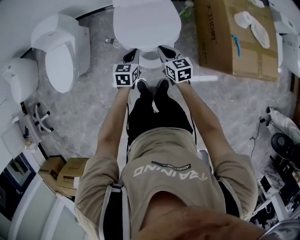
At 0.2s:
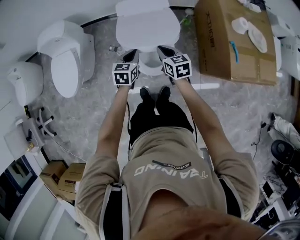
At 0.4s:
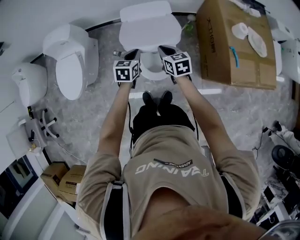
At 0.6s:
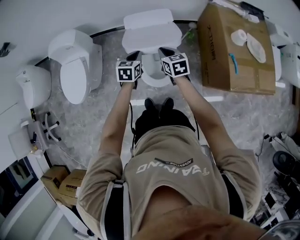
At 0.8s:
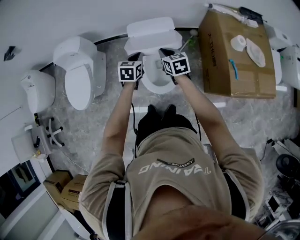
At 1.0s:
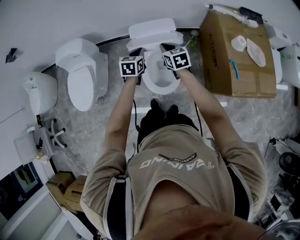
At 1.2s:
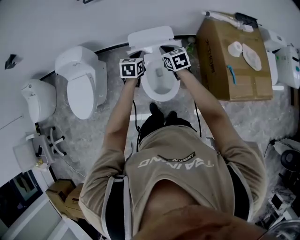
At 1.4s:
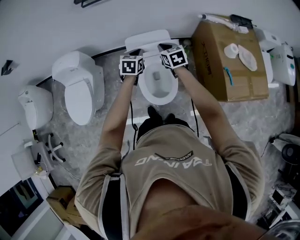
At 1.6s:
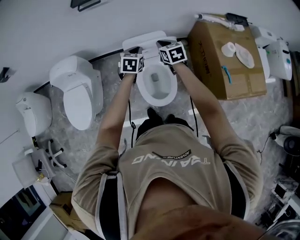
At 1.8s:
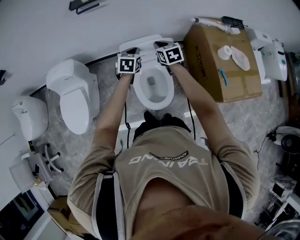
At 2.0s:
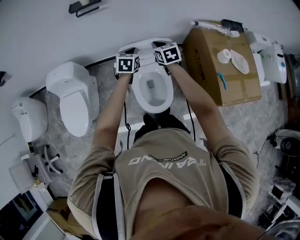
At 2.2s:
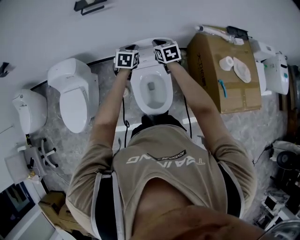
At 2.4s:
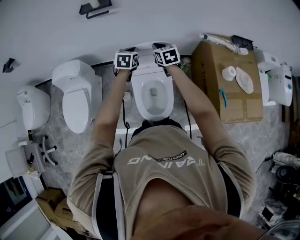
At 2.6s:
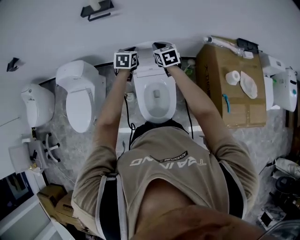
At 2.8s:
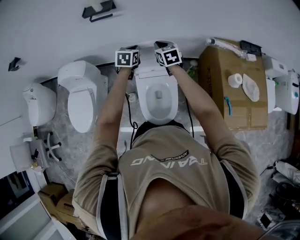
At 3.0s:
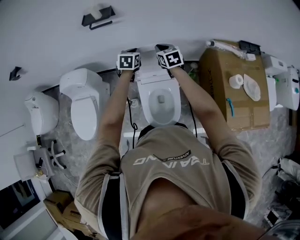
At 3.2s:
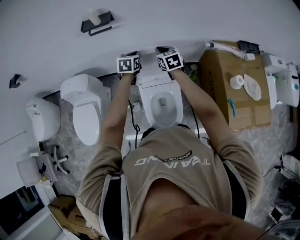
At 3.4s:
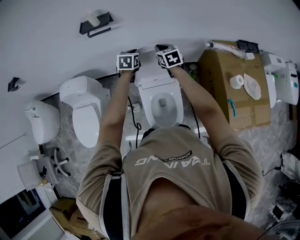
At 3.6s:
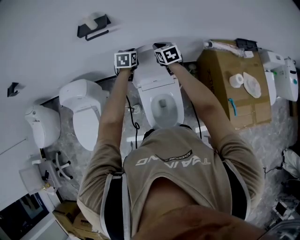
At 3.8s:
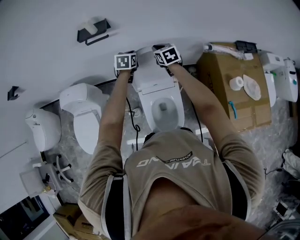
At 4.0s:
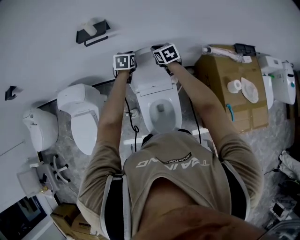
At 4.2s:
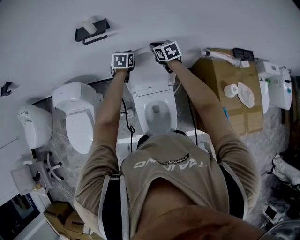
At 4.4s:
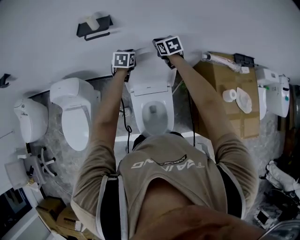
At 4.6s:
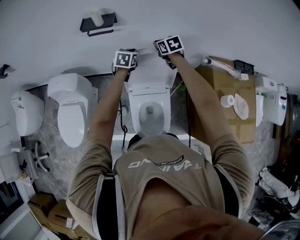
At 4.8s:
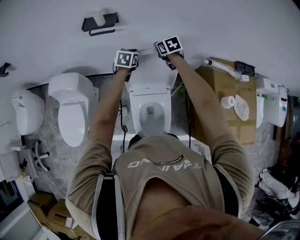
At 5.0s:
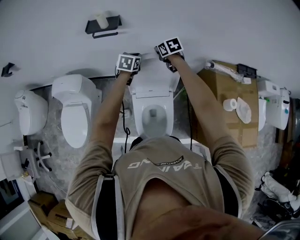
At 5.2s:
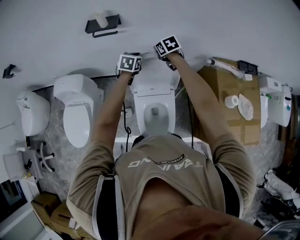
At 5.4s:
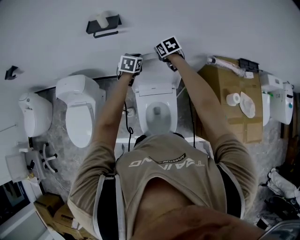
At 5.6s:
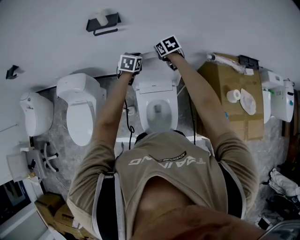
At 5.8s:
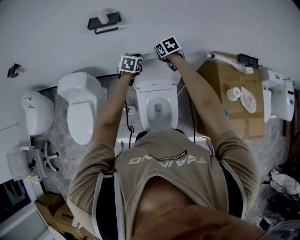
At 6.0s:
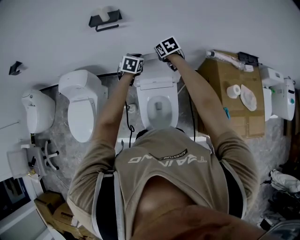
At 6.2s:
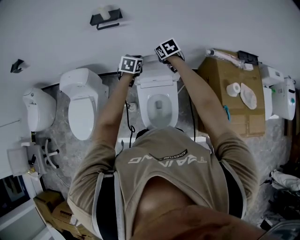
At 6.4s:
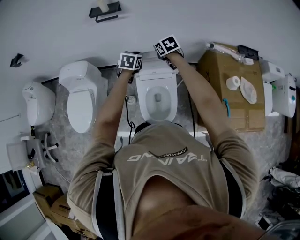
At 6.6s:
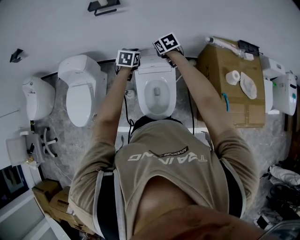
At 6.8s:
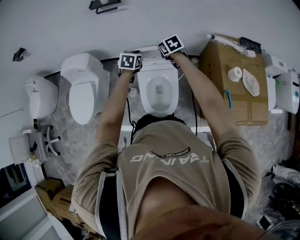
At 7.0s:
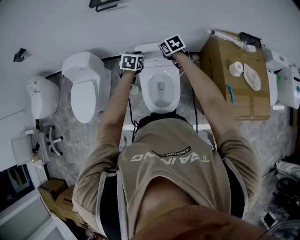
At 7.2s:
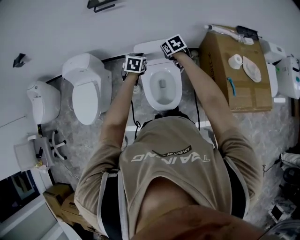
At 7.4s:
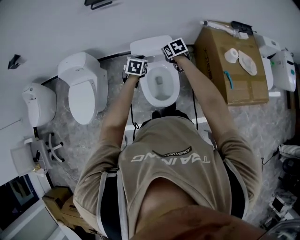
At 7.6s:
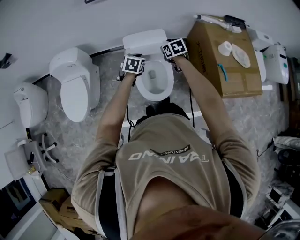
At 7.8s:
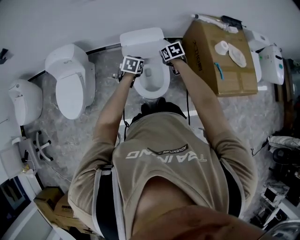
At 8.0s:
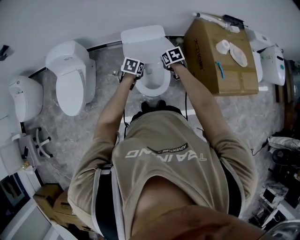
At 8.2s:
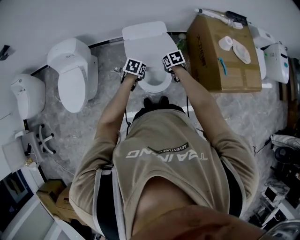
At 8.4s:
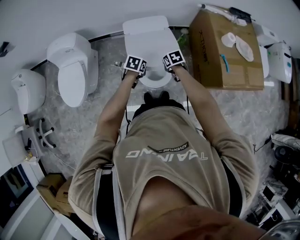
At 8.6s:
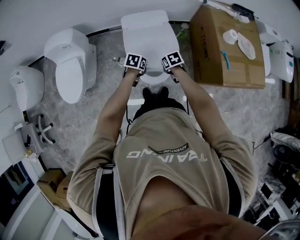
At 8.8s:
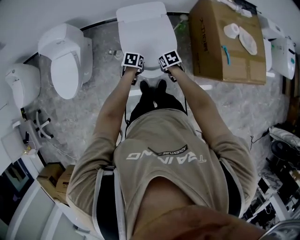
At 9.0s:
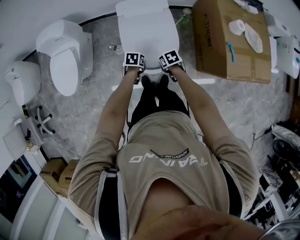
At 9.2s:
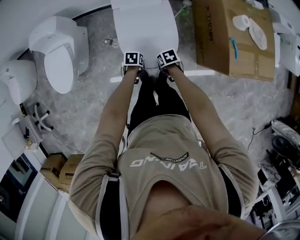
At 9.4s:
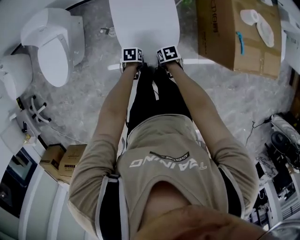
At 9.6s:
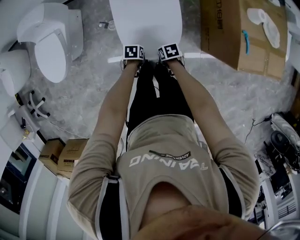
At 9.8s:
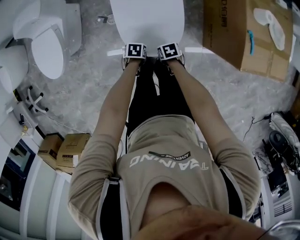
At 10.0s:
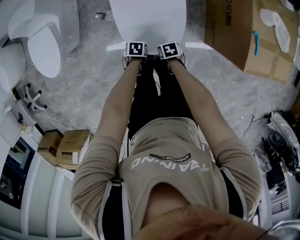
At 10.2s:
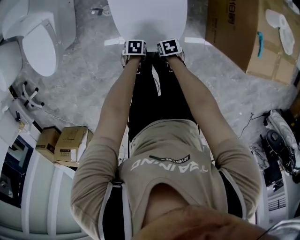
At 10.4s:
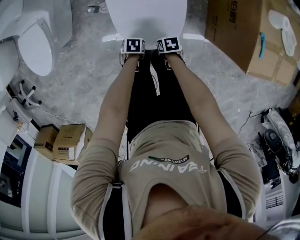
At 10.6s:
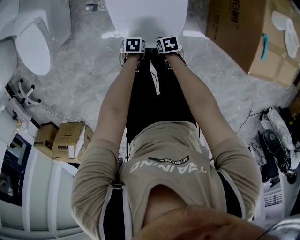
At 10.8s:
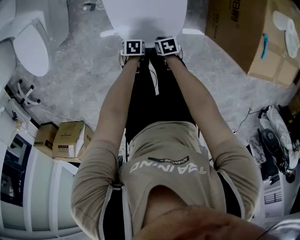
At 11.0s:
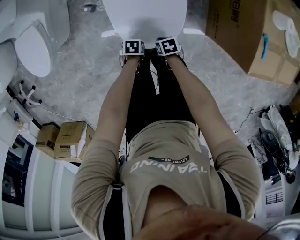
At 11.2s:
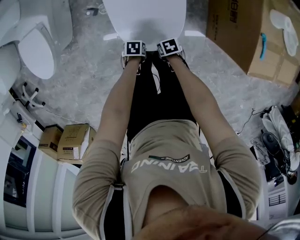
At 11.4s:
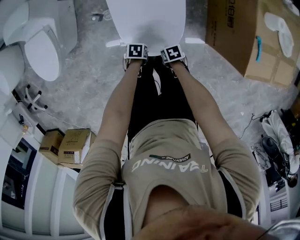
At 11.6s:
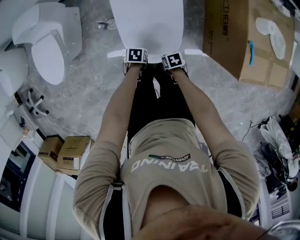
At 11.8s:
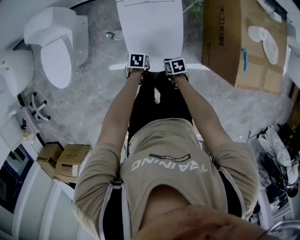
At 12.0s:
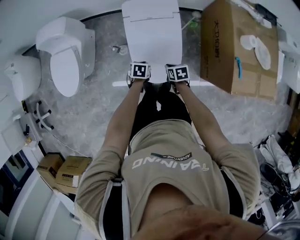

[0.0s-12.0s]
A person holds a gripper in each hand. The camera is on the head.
0.0s to 1.6s: Both grippers travel together forward and upward, roughly 30 cm.
1.6s to 3.0s: The grippers both shift forward by some 15 cm.
3.0s to 4.4s: The two grippers go some 10 cm forward.
4.4s to 6.0s: Both grippers move backward, some 10 cm.
6.0s to 7.6s: The two grippers go roughly 25 cm backward.
7.6s to 9.0s: Both grippers move downward, approximately 20 cm. The left gripper rotates approximately 40 degrees. Meanwhile the right gripper turns by approximately 30 degrees.
9.0s to 10.4s: Both grippers travel together downward, roughly 20 cm.
10.4s to 12.0s: The two grippers go some 20 cm upward. The left gripper turns by about 20 degrees.

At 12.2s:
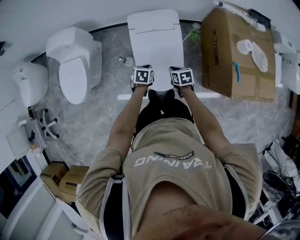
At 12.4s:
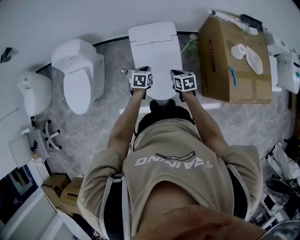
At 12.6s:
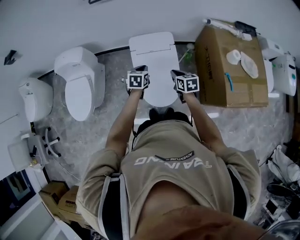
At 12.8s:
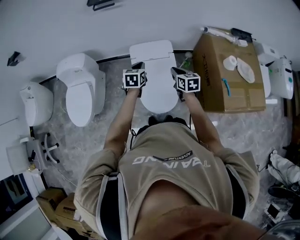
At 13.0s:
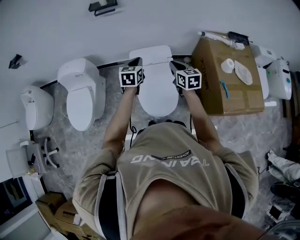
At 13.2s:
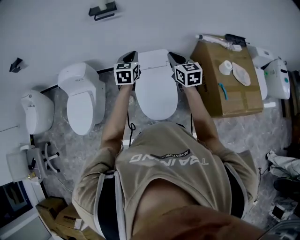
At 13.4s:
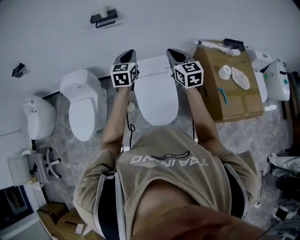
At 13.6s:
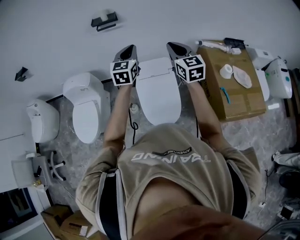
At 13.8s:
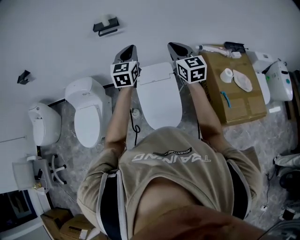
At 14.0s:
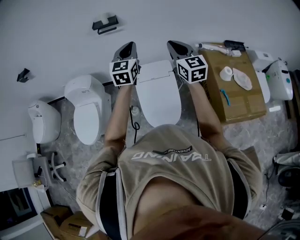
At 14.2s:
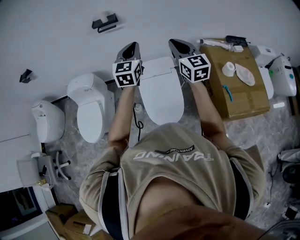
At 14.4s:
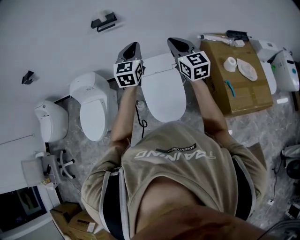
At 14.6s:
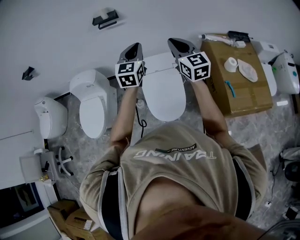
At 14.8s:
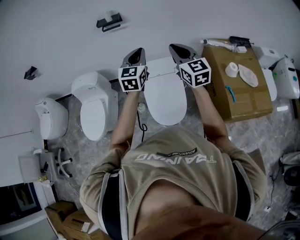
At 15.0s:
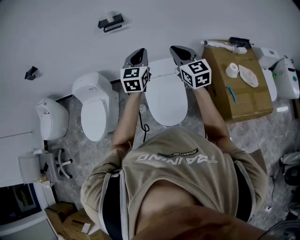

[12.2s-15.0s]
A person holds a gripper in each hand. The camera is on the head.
12.2s to 13.6s: Both grippers move upward, approximately 40 cm. The left gripper tilts its fingers some 50 degrees upward; the right gripper angles its fingers upward, by some 50 degrees.
13.6s to 15.0s: Both grippers move backward, some 5 cm.

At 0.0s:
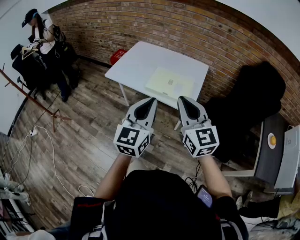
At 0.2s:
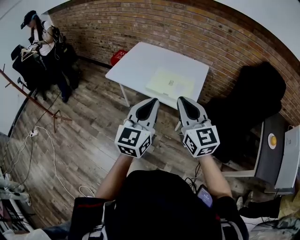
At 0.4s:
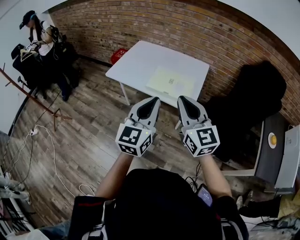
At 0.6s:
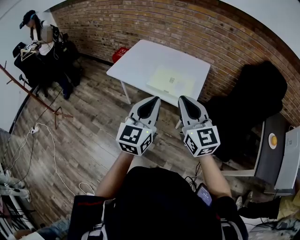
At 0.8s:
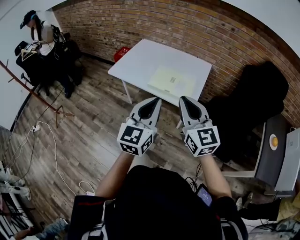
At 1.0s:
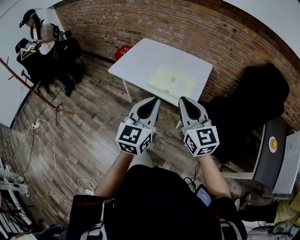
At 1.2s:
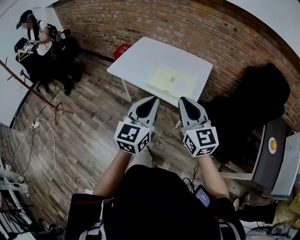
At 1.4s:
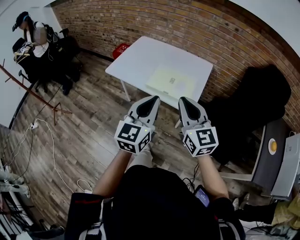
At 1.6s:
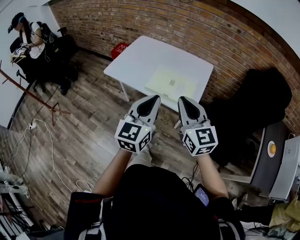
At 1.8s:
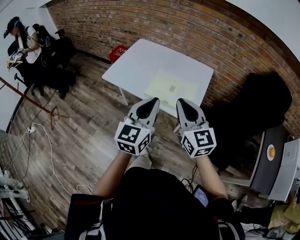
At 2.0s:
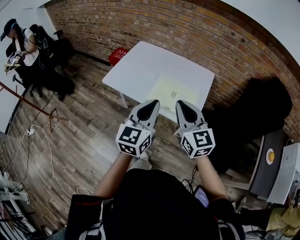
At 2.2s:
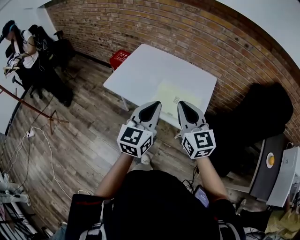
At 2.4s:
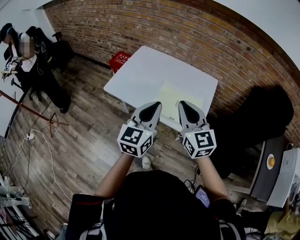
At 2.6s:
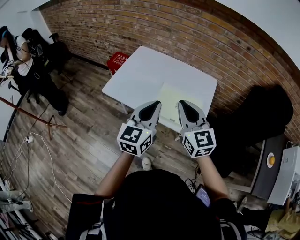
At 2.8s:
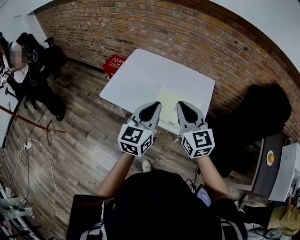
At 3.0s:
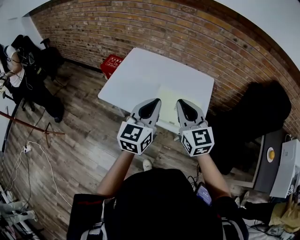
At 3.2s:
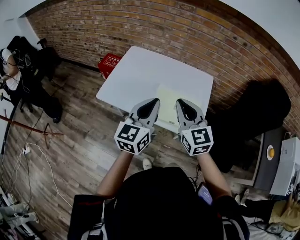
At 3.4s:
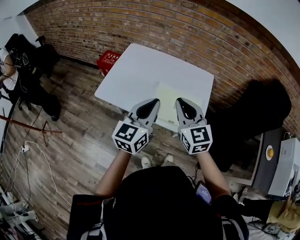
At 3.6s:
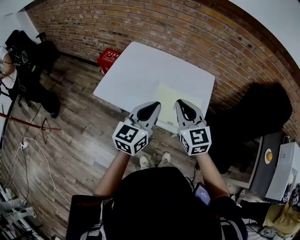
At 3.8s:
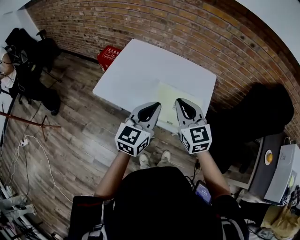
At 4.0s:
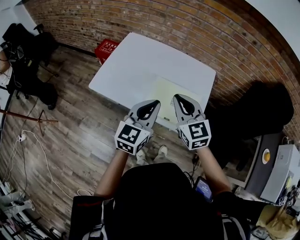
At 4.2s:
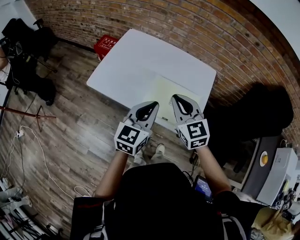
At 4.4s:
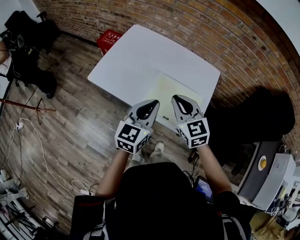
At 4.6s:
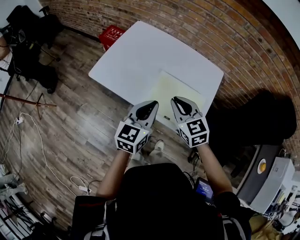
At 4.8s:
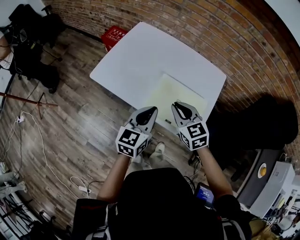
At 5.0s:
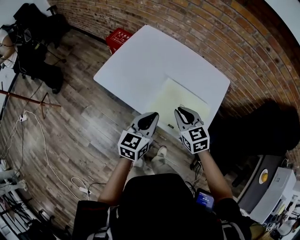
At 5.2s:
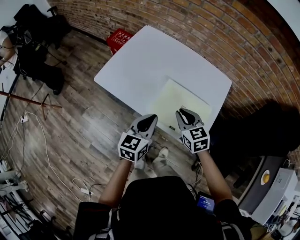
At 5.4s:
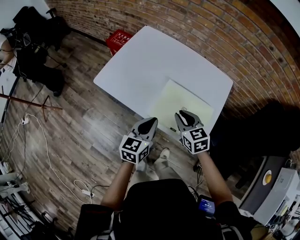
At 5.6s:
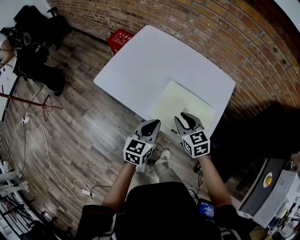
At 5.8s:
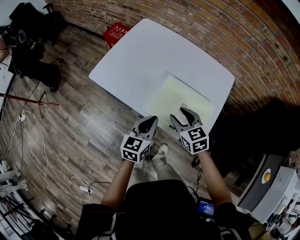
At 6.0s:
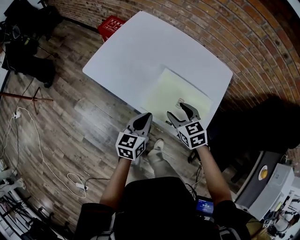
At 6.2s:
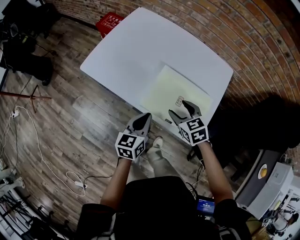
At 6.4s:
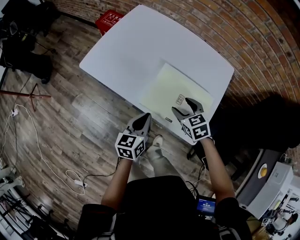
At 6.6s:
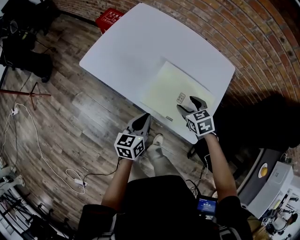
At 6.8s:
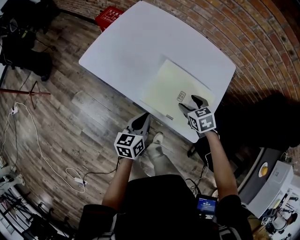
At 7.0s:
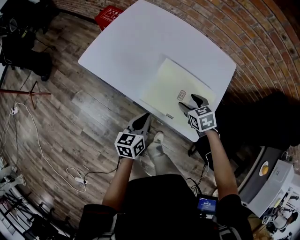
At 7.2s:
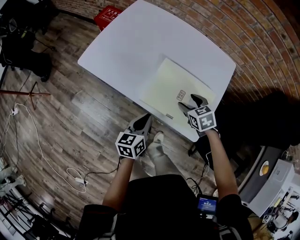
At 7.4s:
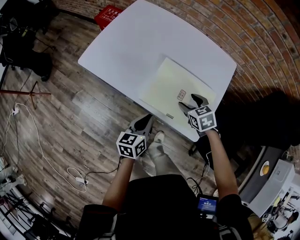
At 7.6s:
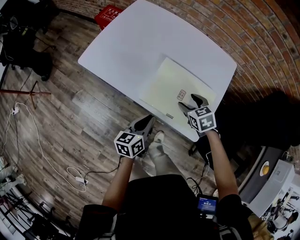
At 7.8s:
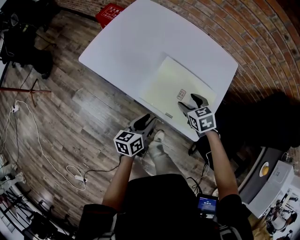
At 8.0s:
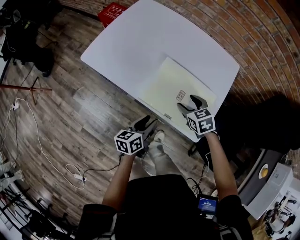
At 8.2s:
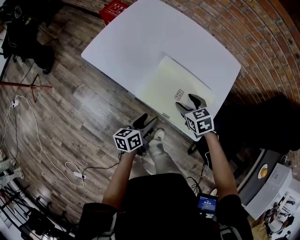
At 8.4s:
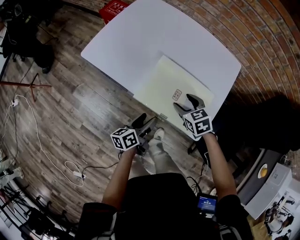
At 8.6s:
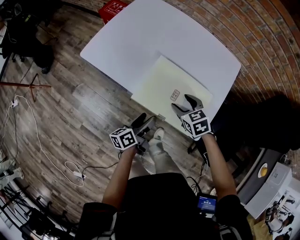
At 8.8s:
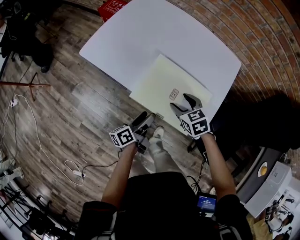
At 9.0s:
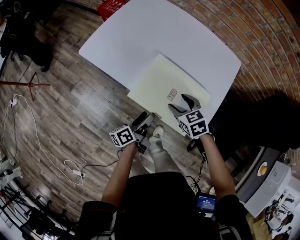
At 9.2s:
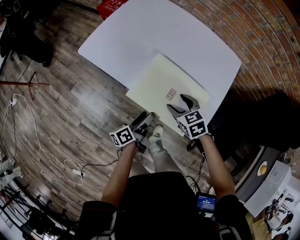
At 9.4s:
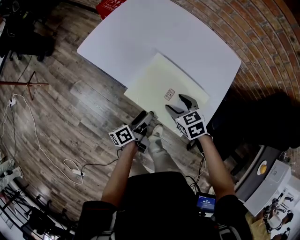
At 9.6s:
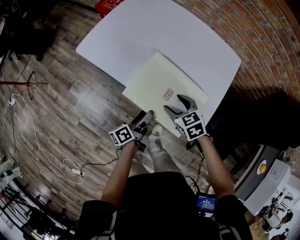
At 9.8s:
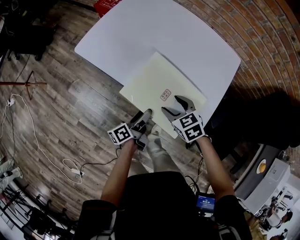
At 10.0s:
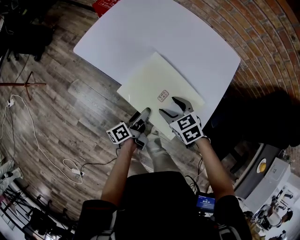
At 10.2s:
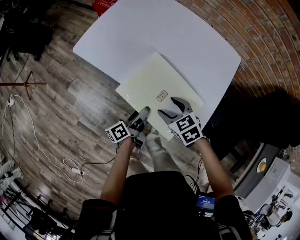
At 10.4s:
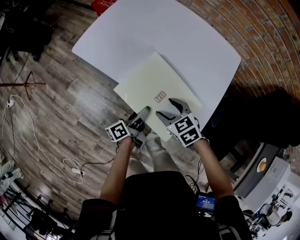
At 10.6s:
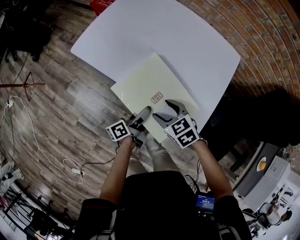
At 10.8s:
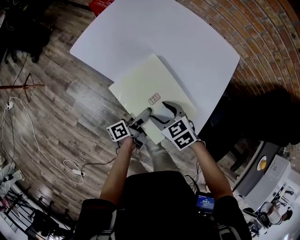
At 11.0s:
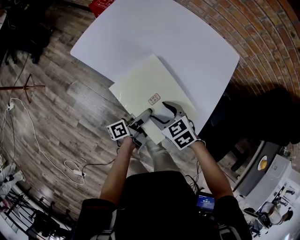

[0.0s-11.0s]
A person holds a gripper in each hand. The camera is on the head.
0.0s to 1.6s: The grippers both shift forward by about 5 cm.
1.6s to 3.2s: The two grippers go about 20 cm forward and to the left.
3.2s to 4.8s: The left gripper heads downward, covering roughly 15 cm. The right gripper shifts about 15 cm downward and forward, and turns by roughly 30 degrees.
4.8s to 6.2s: The grippers both shift downward by about 15 cm. The right gripper opens up.
6.2s to 7.8s: The left gripper goes approximately 5 cm downward, while the right gripper changes place by some 5 cm.
7.8s to 9.4s: The left gripper turns by roughly 40 degrees, and opens up; the right gripper travels to the left by some 5 cm.
9.4s to 11.0s: The right gripper goes roughly 5 cm to the left.
